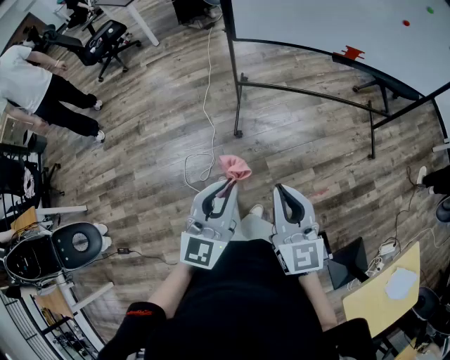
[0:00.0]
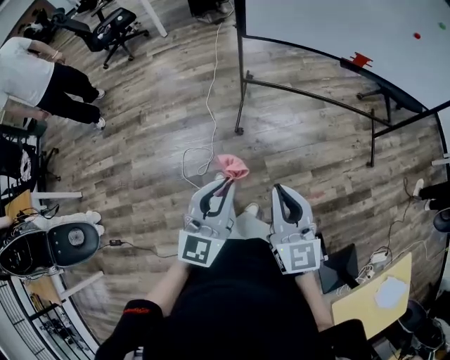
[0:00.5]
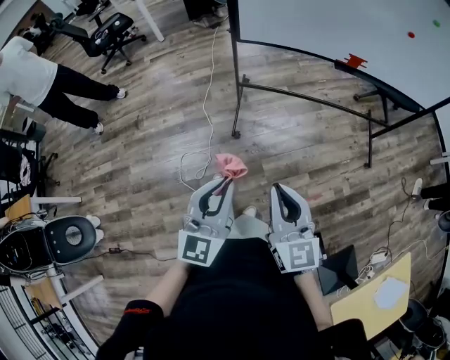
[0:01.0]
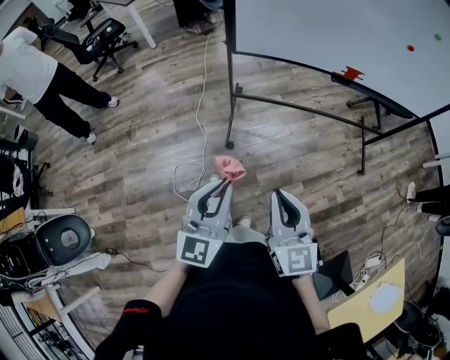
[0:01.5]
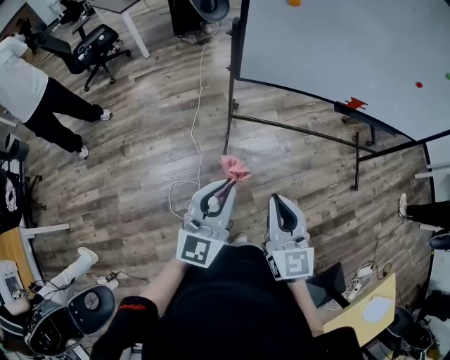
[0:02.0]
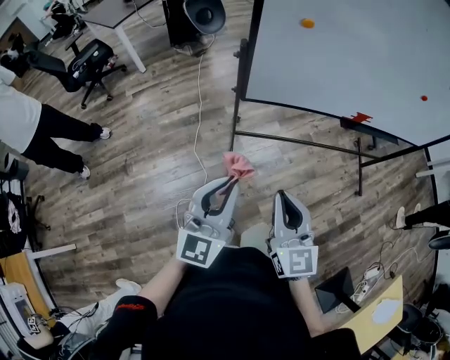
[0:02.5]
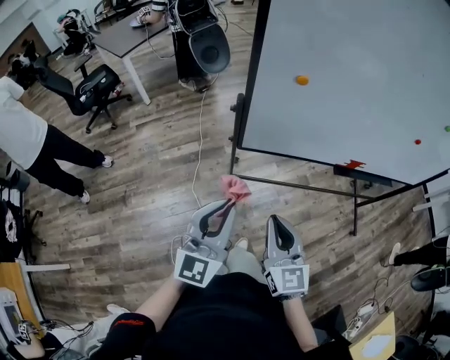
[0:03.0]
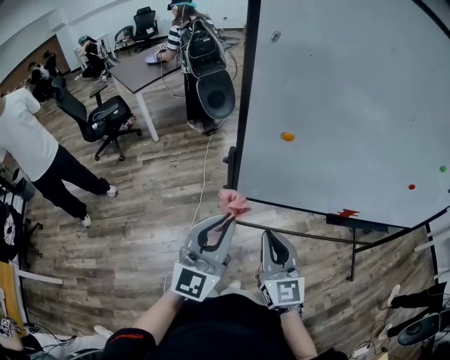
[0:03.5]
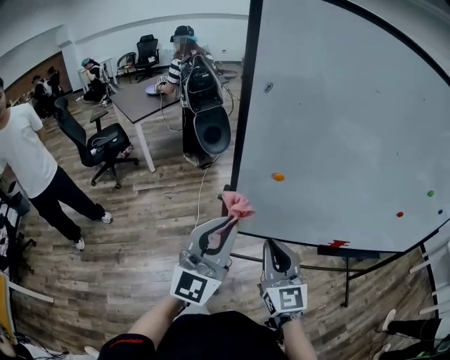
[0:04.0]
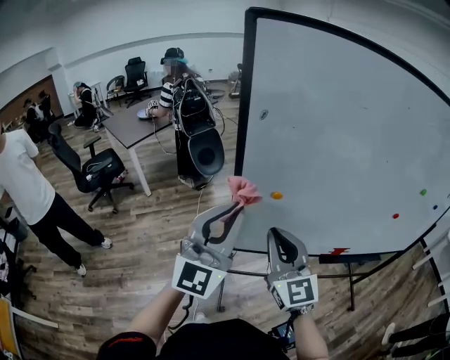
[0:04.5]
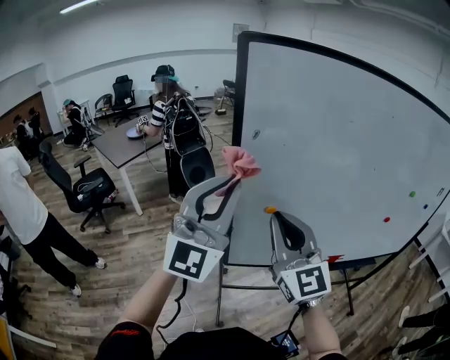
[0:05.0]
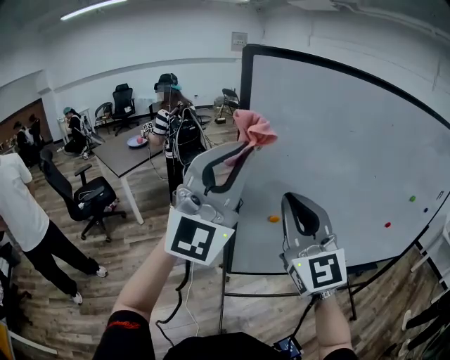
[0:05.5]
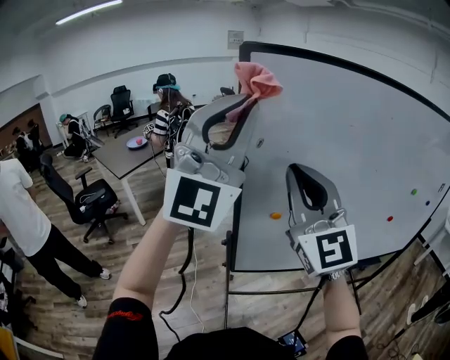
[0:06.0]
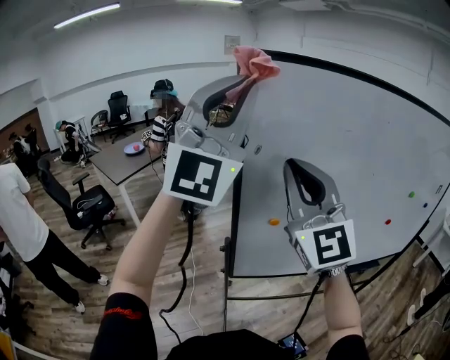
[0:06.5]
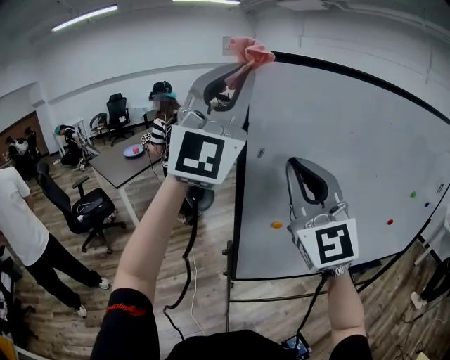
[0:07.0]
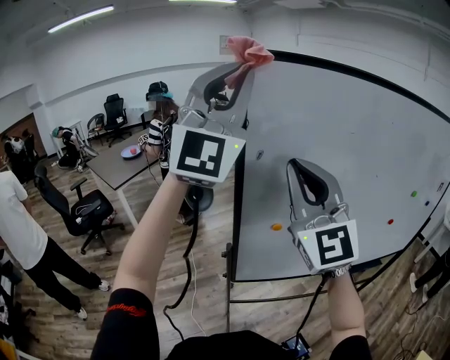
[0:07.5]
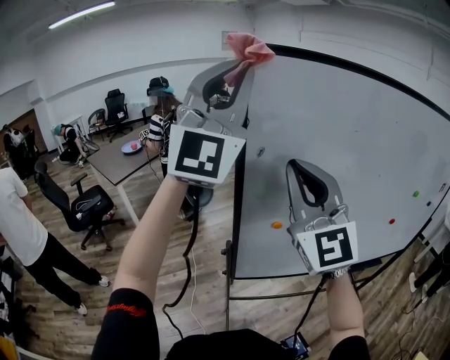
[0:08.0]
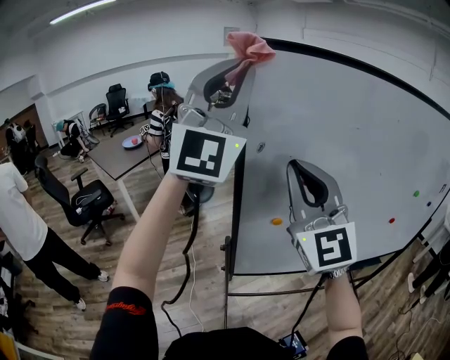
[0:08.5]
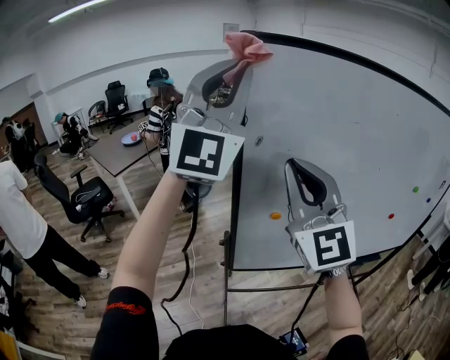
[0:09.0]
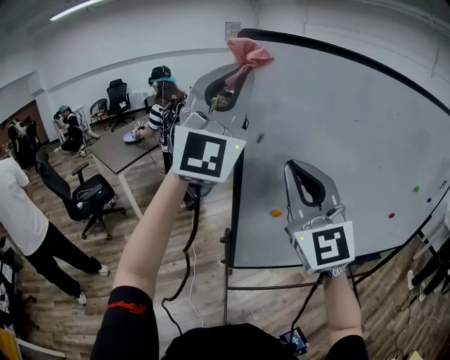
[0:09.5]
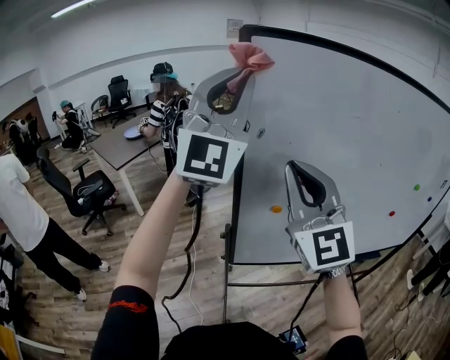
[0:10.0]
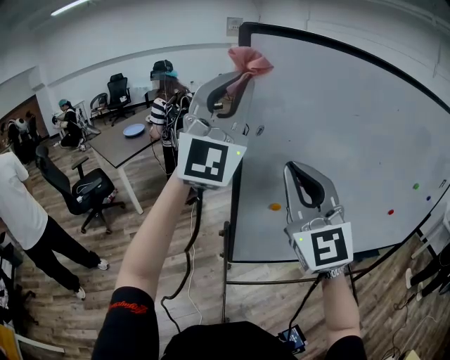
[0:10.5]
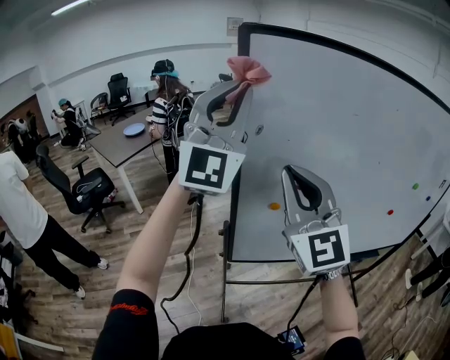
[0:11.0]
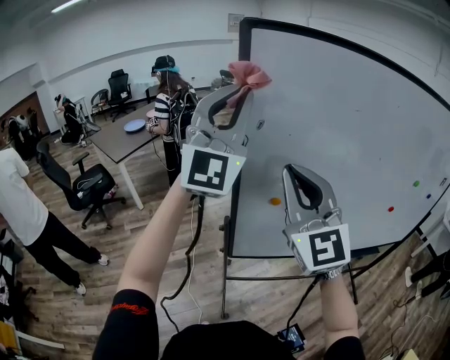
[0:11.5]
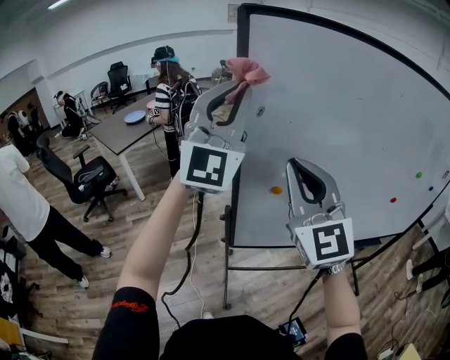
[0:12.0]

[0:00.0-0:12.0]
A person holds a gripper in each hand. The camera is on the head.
0:00.0 to 0:02.0: Both grippers travel together forward, roughly 20 cm.
0:02.0 to 0:04.0: The left gripper moves forward and upward, roughly 35 cm, and rotates some 30 degrees, while the right gripper shifts approximately 30 cm forward.
0:04.0 to 0:06.0: Both grippers travel together upward, approximately 30 cm. The left gripper rotates about 40 degrees. Meanwhile the right gripper swivels some 30 degrees.
0:06.0 to 0:08.0: The left gripper moves forward, roughly 5 cm.
0:08.0 to 0:10.0: The grippers move only a little.
0:10.0 to 0:12.0: The left gripper shifts about 5 cm downward.

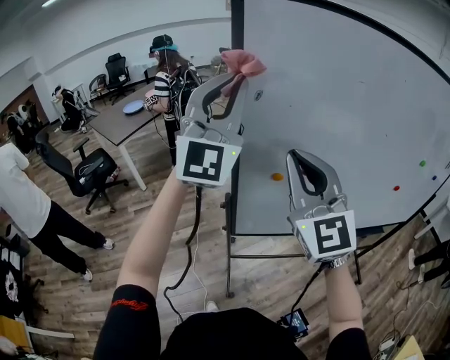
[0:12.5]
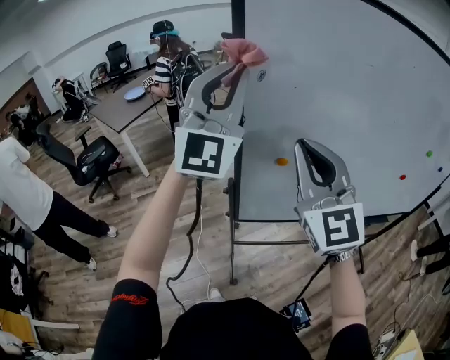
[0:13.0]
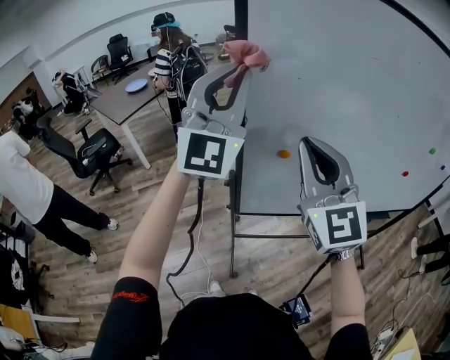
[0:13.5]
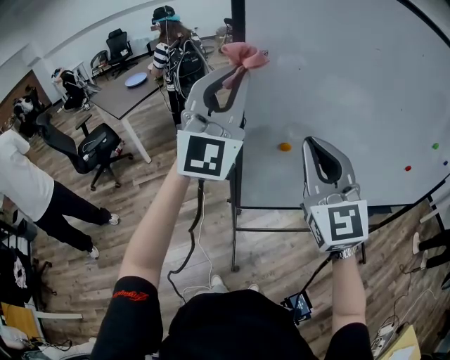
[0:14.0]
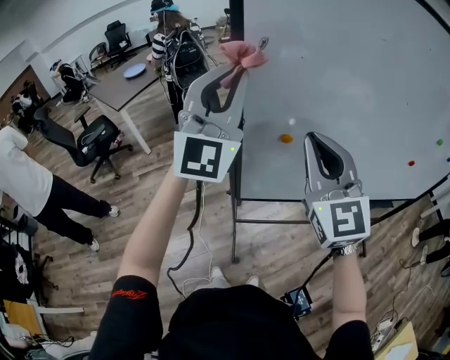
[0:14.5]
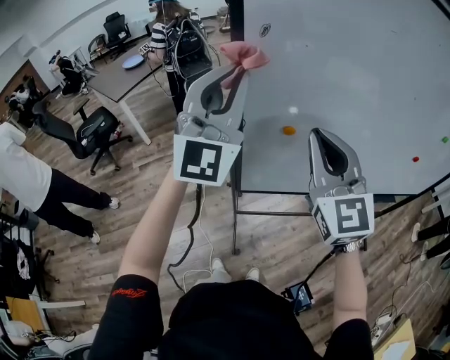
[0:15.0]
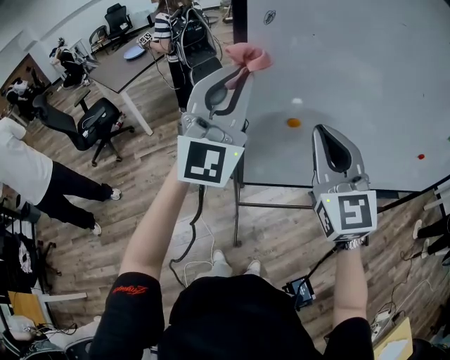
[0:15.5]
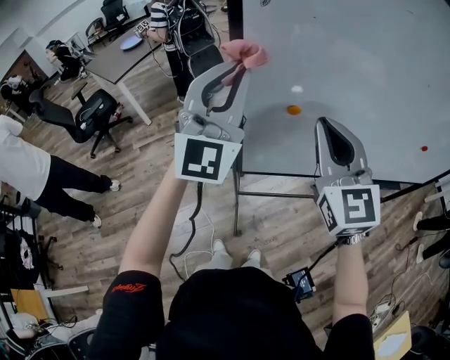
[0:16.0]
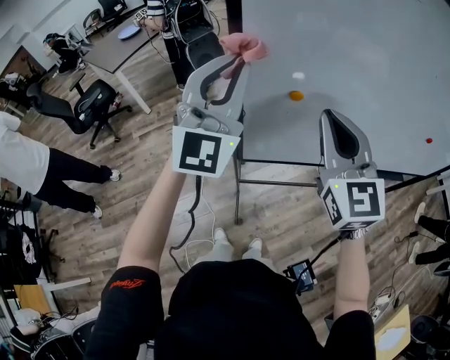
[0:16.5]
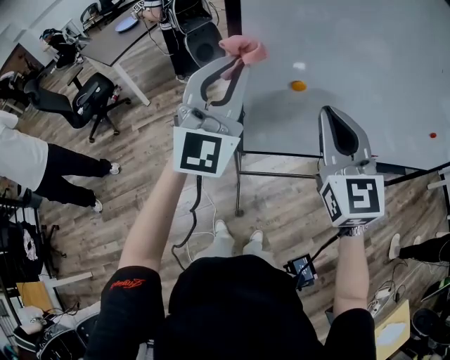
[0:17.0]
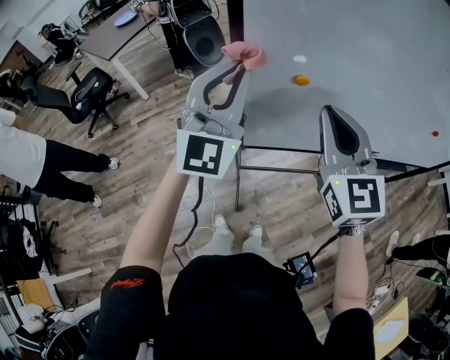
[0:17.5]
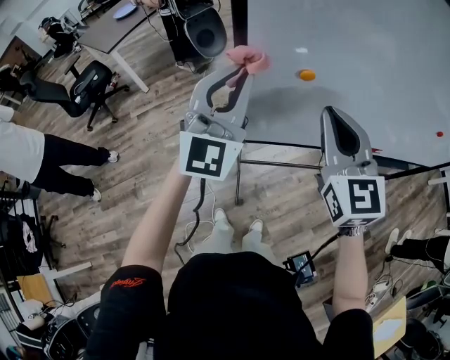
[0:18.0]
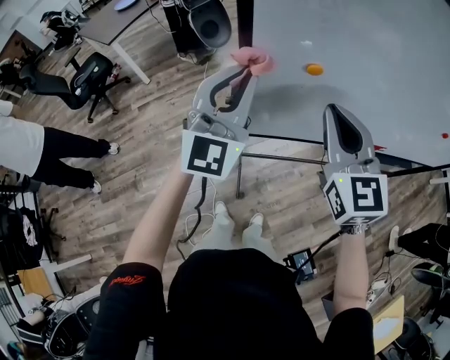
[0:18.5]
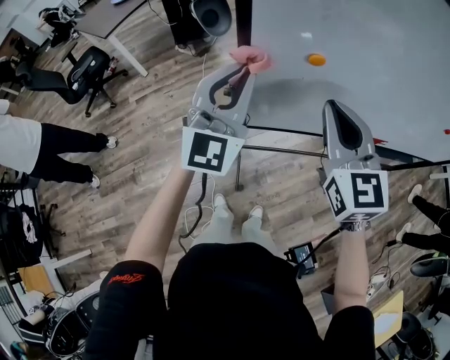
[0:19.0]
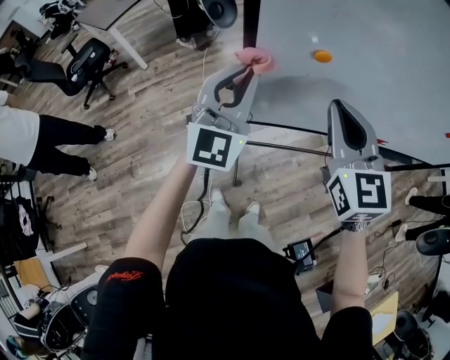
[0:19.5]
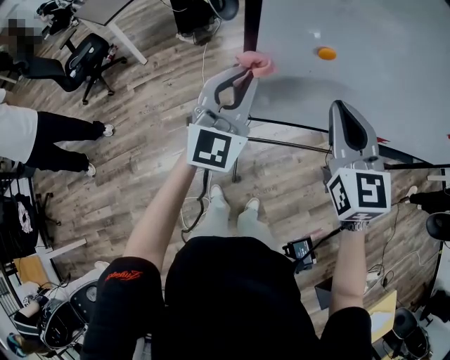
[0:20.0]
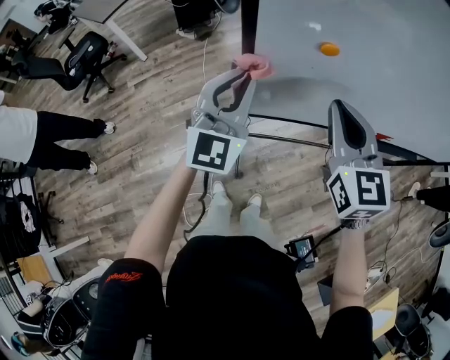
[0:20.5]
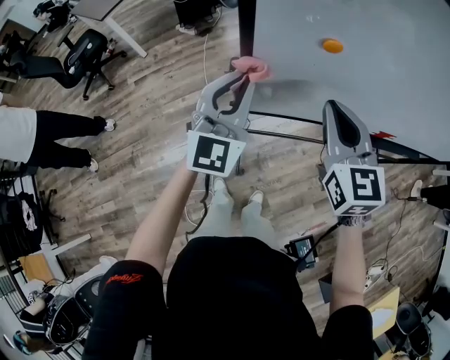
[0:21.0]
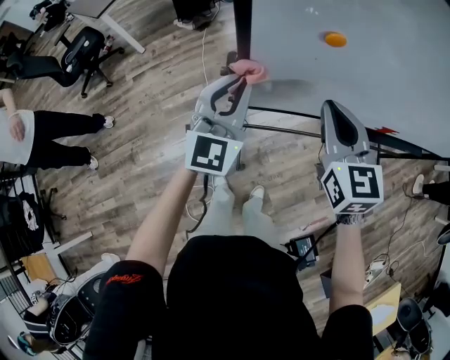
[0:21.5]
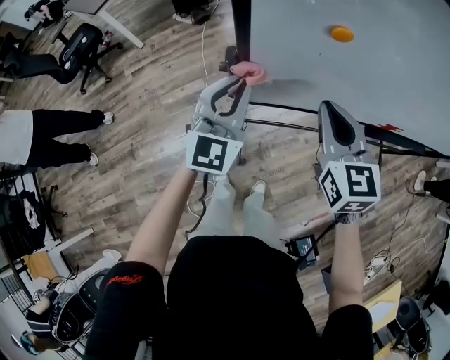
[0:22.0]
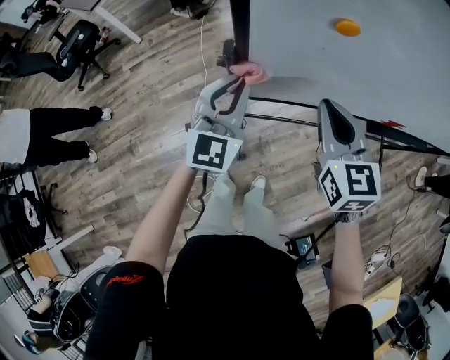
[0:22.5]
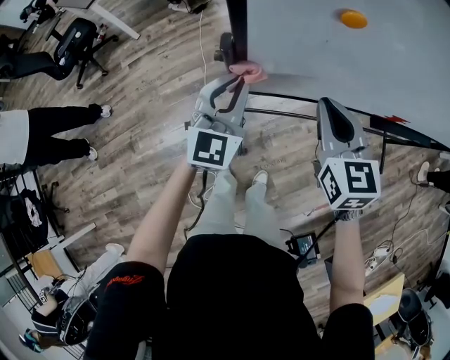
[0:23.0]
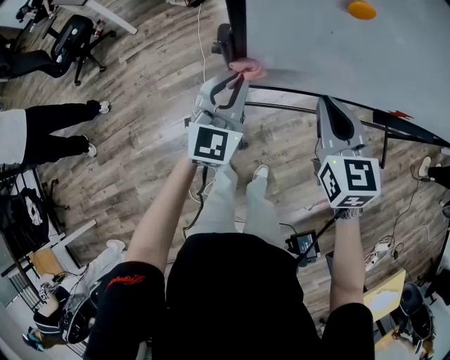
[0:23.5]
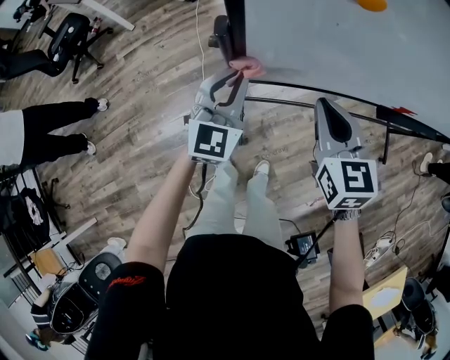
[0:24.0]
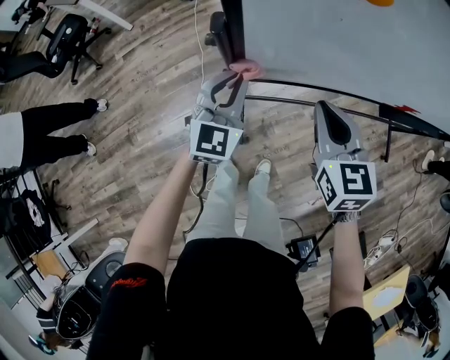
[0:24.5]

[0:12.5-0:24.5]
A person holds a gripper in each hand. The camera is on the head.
0:12.5 to 0:14.5: The two grippers go about 10 cm downward.
0:14.5 to 0:16.5: The grippers both shift downward by some 10 cm.
0:16.5 to 0:18.5: The left gripper moves downward, roughly 10 cm, while the right gripper travels downward by some 5 cm.
0:18.5 to 0:20.5: The right gripper heads downward, covering about 5 cm. Meanwhile the left gripper goes roughly 10 cm downward.
0:20.5 to 0:22.5: The grippers both shift downward by some 10 cm.
0:22.5 to 0:24.5: The grippers both shift downward by some 10 cm.

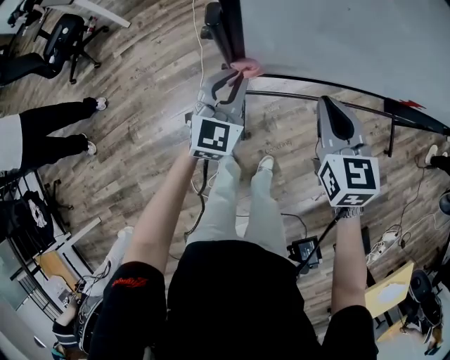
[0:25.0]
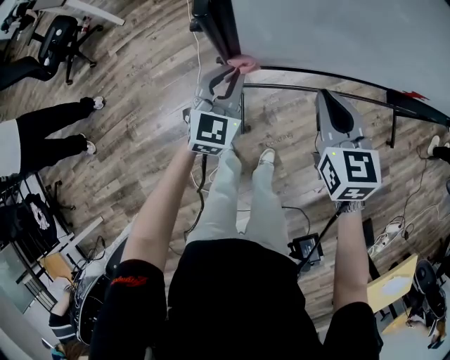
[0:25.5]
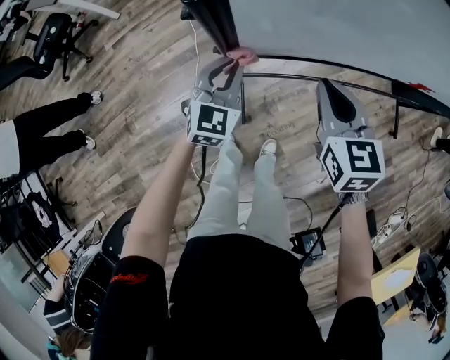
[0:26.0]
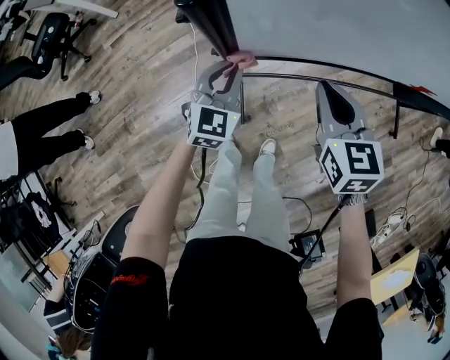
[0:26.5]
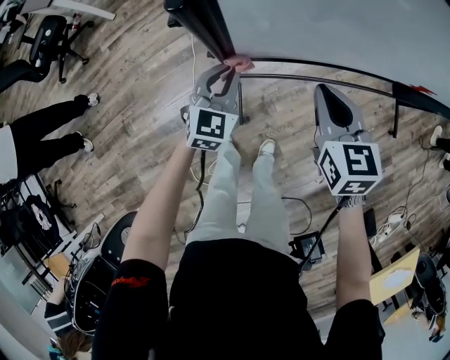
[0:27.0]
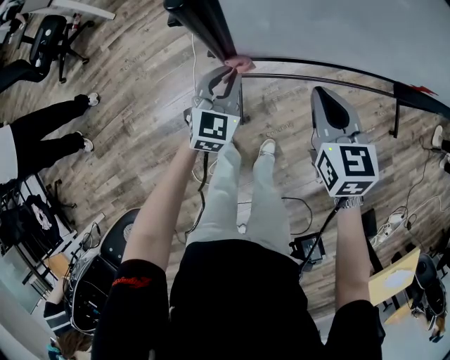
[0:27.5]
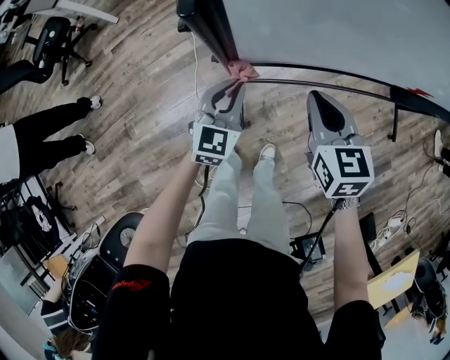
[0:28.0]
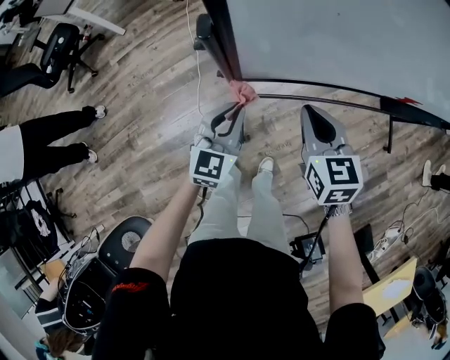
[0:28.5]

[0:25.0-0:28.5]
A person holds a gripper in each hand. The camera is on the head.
0:25.0 to 0:27.0: The left gripper travels downward by about 10 cm. Meanwhile the right gripper heads downward, covering some 5 cm.
0:27.0 to 0:28.5: The left gripper goes approximately 10 cm upward and backward.
